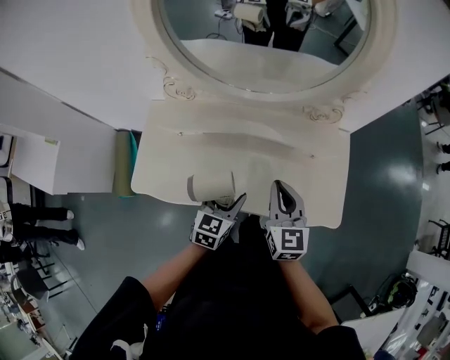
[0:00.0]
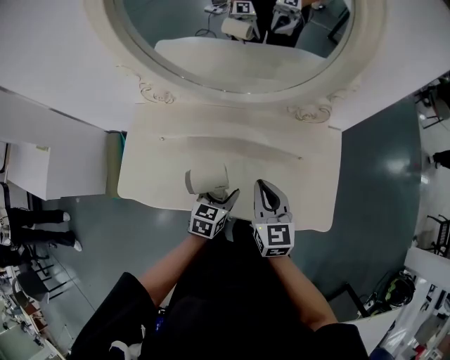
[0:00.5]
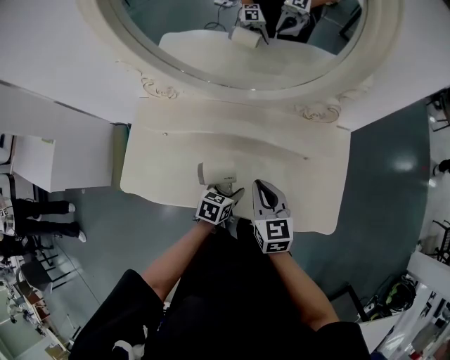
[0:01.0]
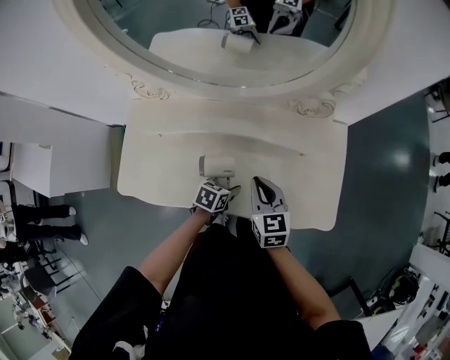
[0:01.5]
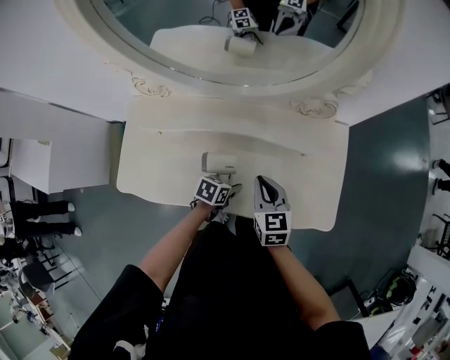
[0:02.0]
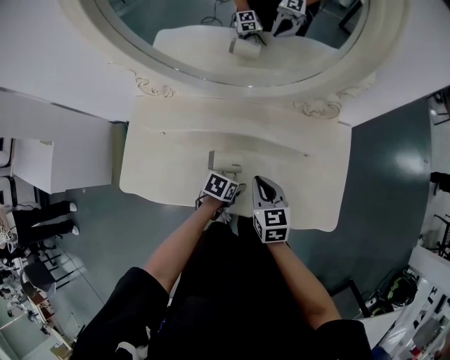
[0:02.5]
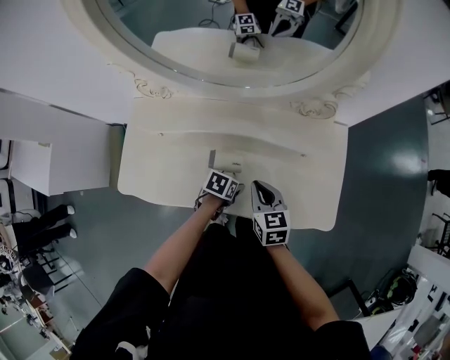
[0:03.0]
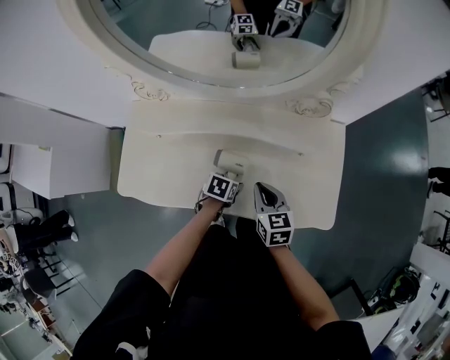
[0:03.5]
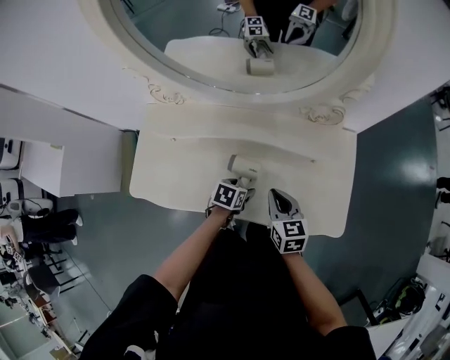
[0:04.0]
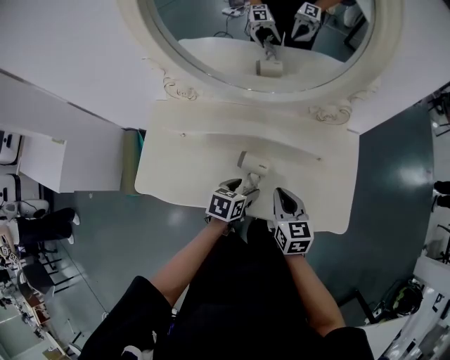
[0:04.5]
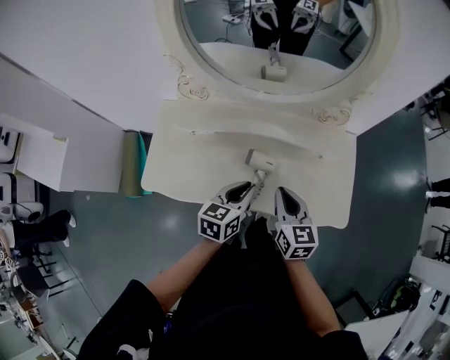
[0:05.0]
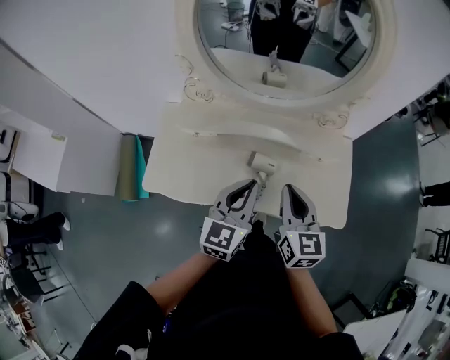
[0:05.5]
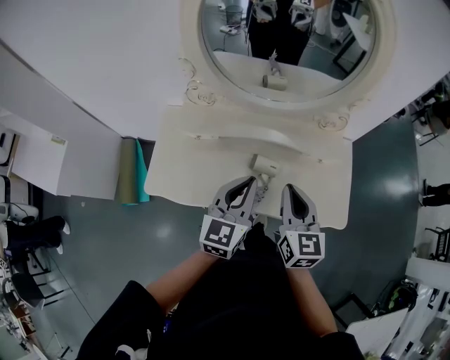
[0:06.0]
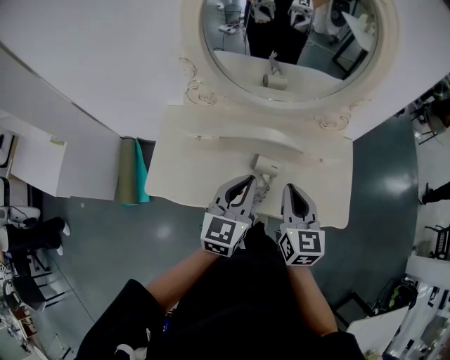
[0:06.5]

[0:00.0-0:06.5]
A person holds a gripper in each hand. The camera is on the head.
0:00.0 to 0:02.0: The left gripper shifts approximately 20 cm downward, and changes its angle by roughly 40 degrees. The right gripper goes roughly 10 cm downward.
0:02.0 to 0:04.5: The left gripper is displaced upward by roughly 10 cm.
0:04.5 to 0:06.5: The right gripper heads upward, covering about 15 cm. The left gripper shifts some 25 cm upward, tips its fingers upward by about 40 degrees, and closes.

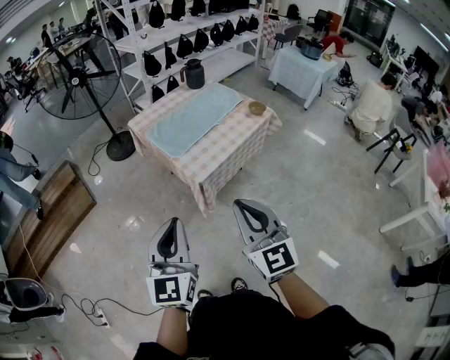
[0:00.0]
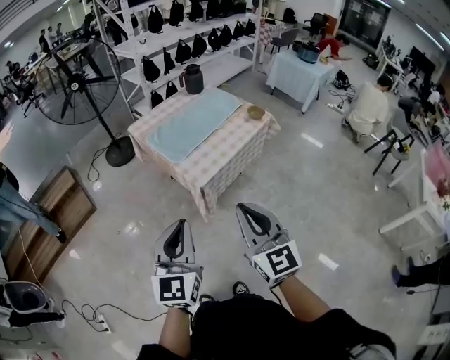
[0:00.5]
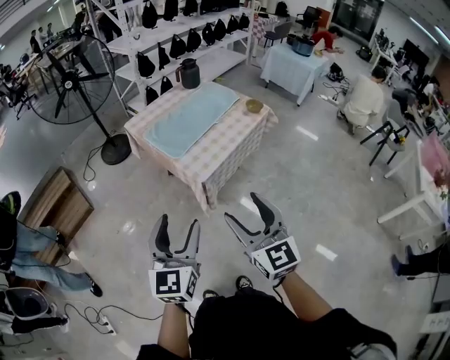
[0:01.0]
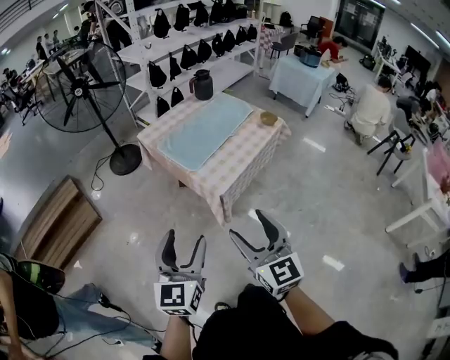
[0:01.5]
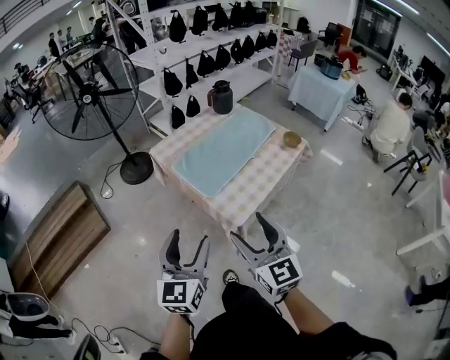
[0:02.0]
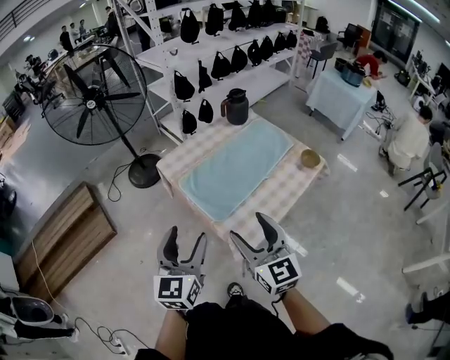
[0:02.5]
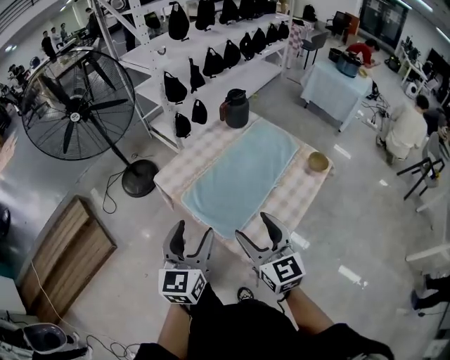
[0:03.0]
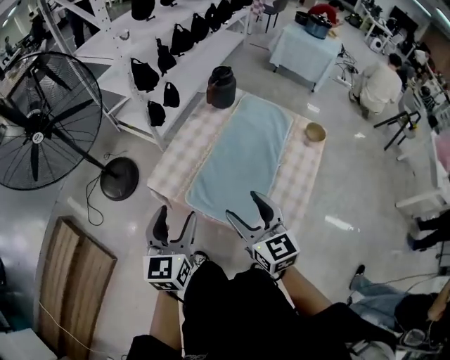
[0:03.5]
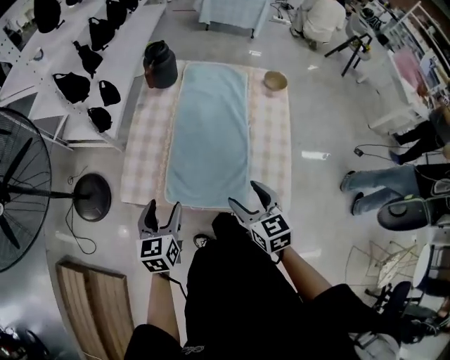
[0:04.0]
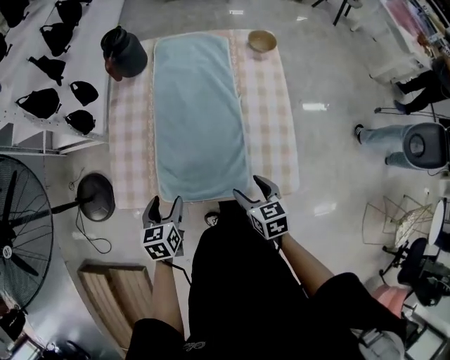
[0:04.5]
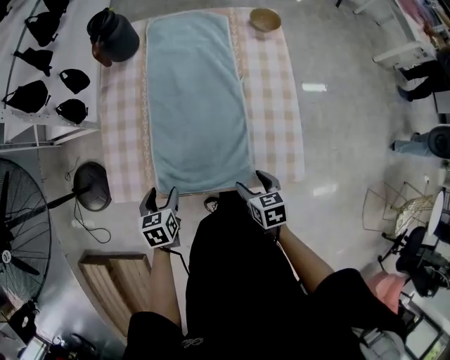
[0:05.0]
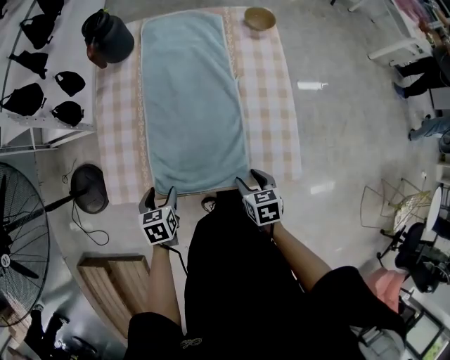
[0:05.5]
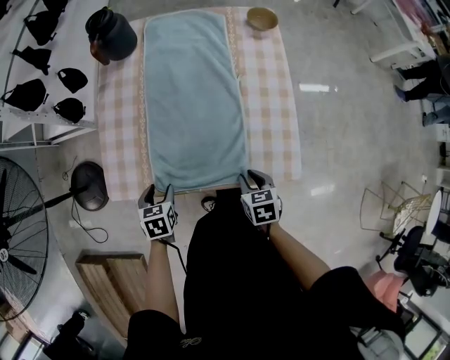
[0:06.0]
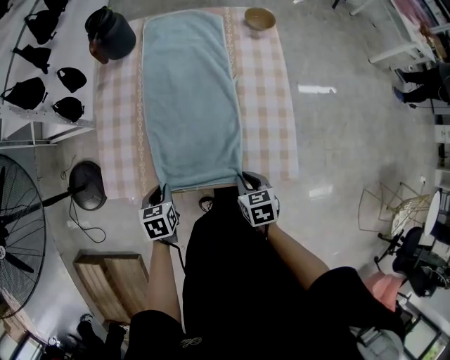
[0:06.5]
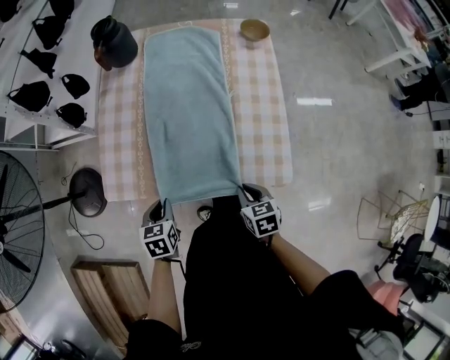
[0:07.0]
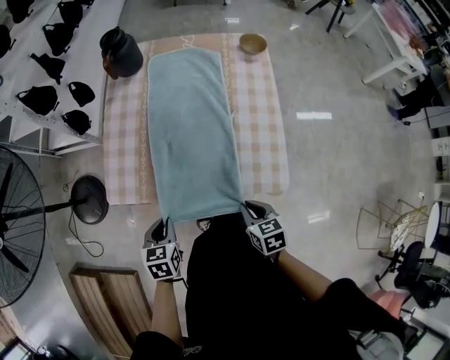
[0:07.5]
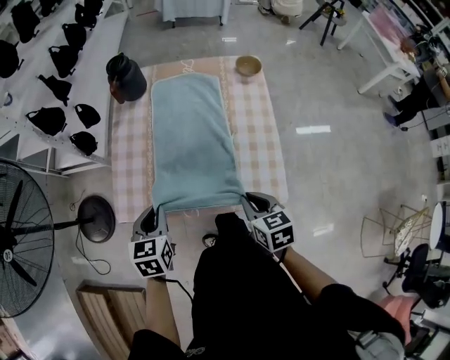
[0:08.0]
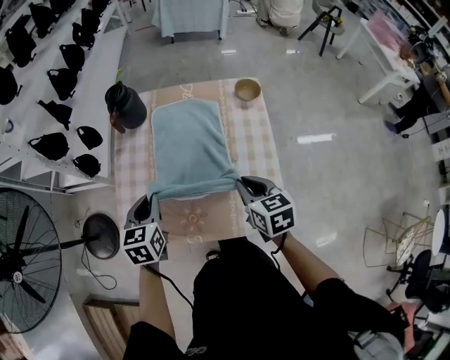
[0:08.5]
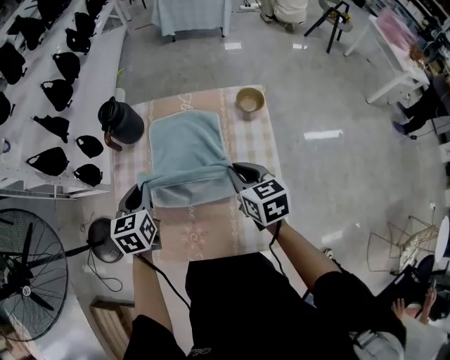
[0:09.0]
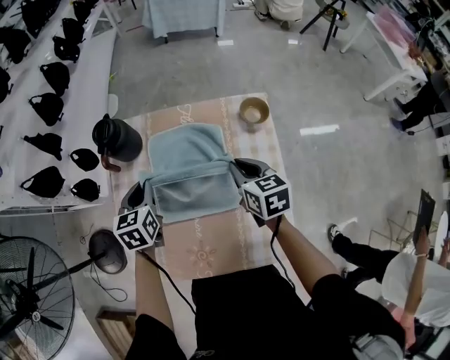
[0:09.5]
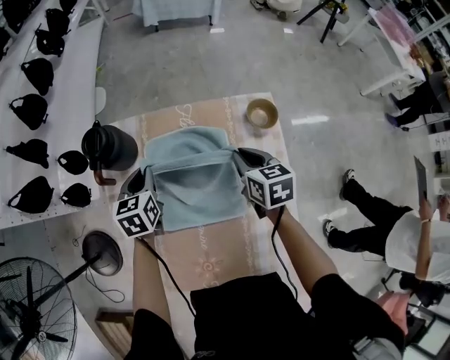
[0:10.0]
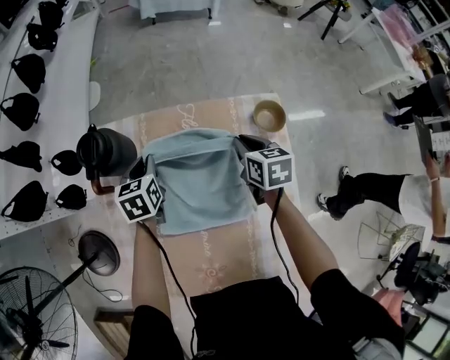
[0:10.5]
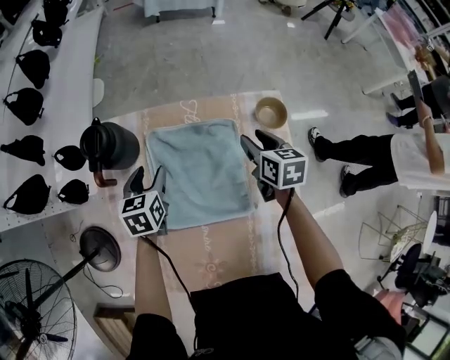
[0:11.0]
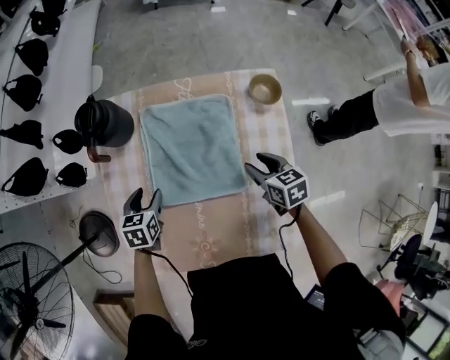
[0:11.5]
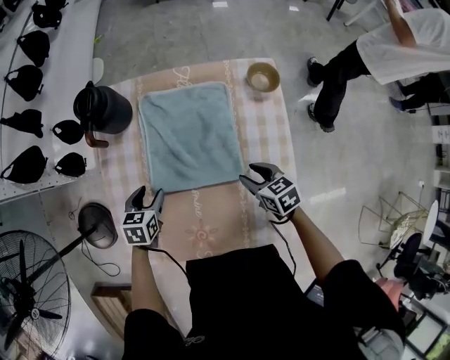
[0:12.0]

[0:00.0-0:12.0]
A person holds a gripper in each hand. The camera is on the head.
0:00.0 to 0:02.0: The grippers both shift forward and to the left by roughly 25 cm. The right gripper opens its fingers; the left gripper opens its fingers.
0:02.0 to 0:04.0: The left gripper ends up about 50 cm from where it was, and turns by approximately 40 degrees. The right gripper ends up approximately 40 cm from where it was, and turns by some 50 degrees.
0:04.0 to 0:06.0: The grippers both shift downward by about 20 cm. The left gripper tilts its fingers approximately 30 degrees downward, while the right gripper swivels roughly 30 degrees, and closes up.
0:06.0 to 0:08.0: Both grippers move upward, roughly 20 cm. The left gripper rotates roughly 20 degrees, and closes its fingers.
0:08.0 to 0:10.0: The pair of grippers is taken forward, roughly 40 cm.
0:10.0 to 0:12.0: The two grippers go about 20 cm backward and downward. The right gripper swivels about 20 degrees, and opens up. Meanwhile the left gripper opens its fingers.

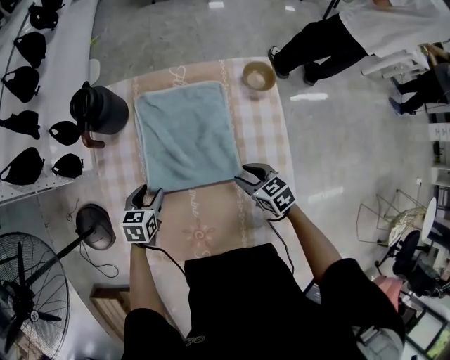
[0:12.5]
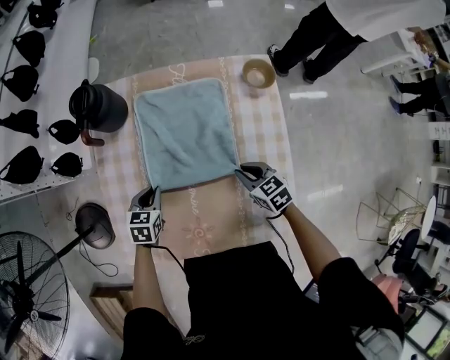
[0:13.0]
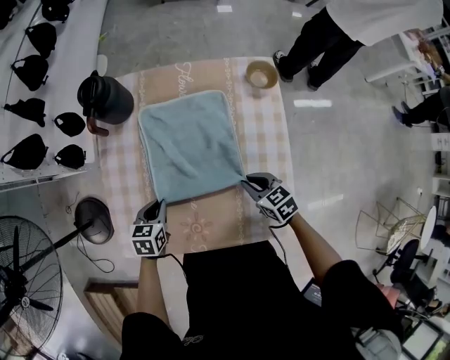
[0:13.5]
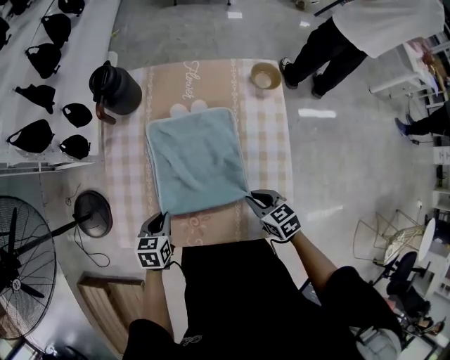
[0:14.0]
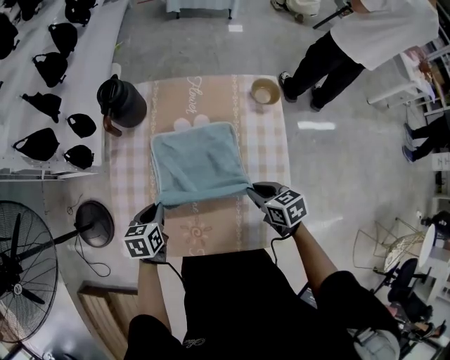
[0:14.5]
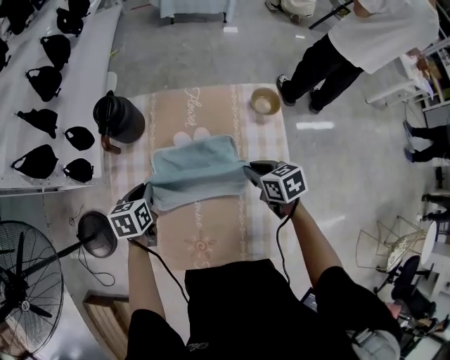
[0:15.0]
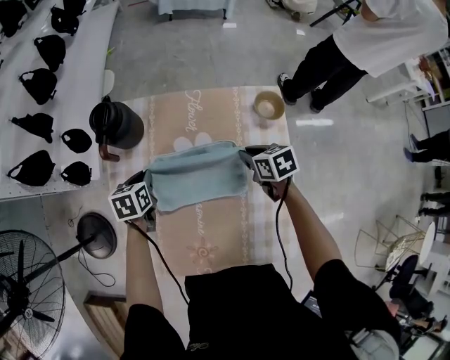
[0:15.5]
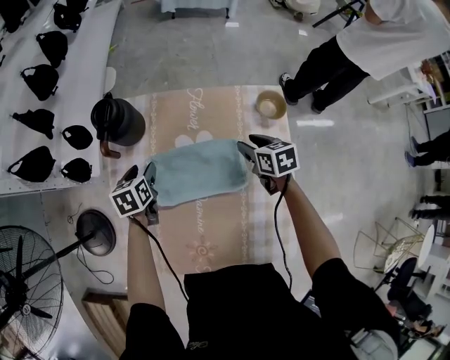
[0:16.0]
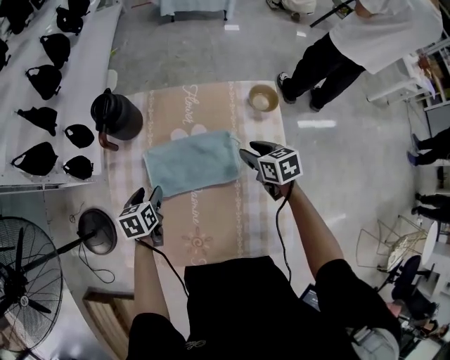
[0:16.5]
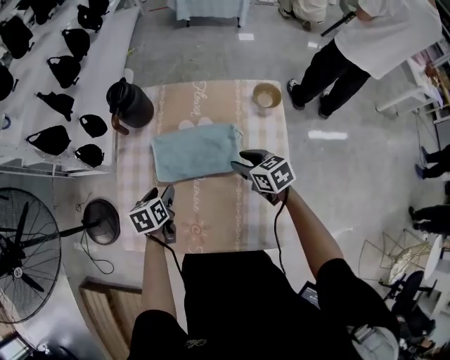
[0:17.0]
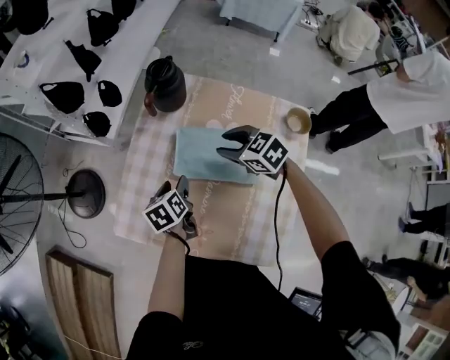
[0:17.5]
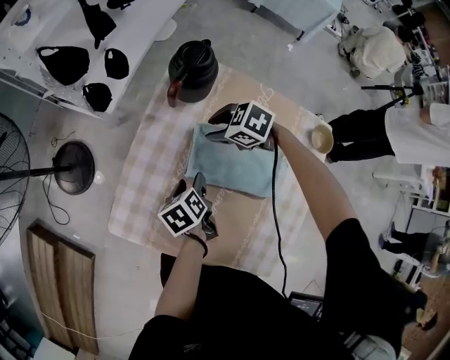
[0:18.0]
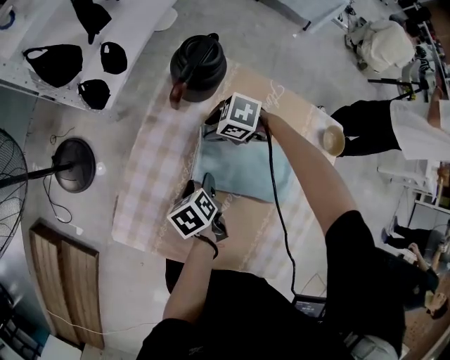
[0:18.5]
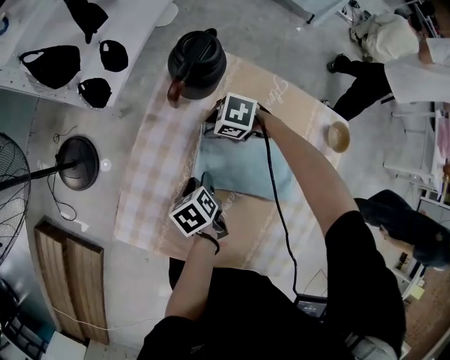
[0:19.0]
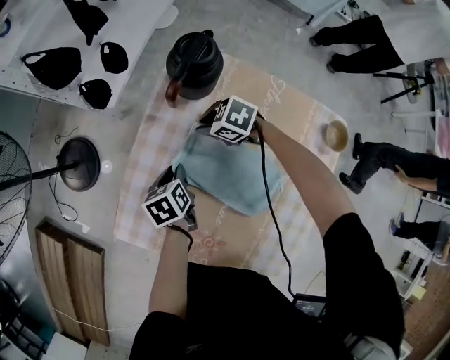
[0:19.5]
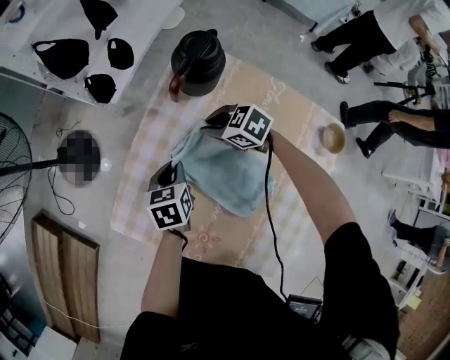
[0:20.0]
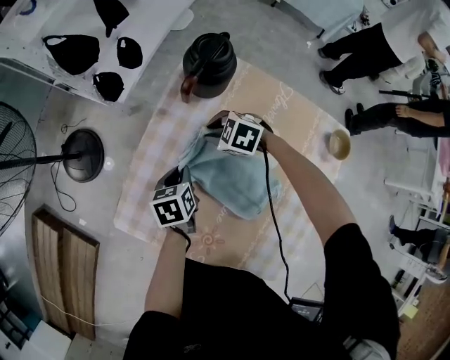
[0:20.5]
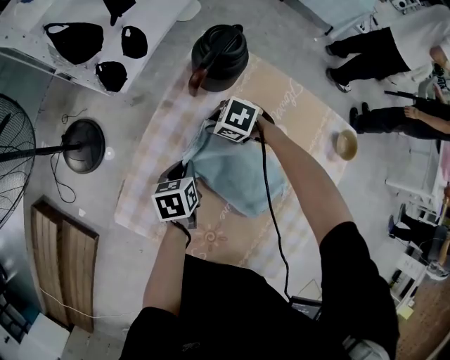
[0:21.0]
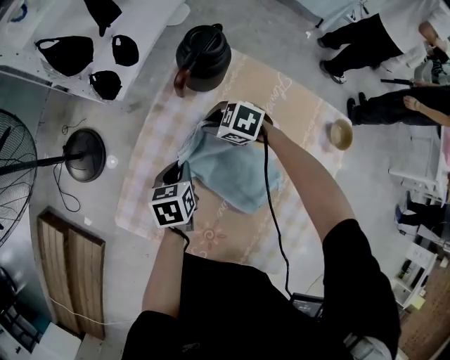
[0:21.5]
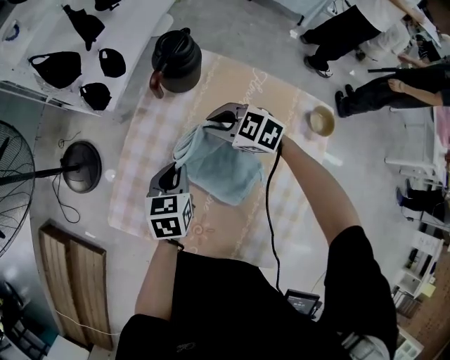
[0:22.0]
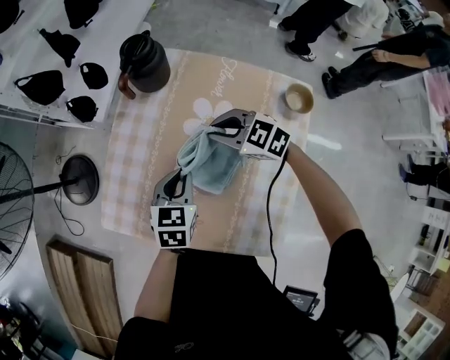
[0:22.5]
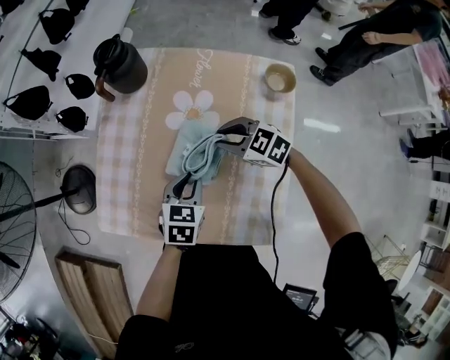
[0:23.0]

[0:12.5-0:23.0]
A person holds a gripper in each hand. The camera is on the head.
0:12.5 to 0:14.5: The left gripper moves backward and upward, about 10 cm, and closes its fingers. Meanwhile the right gripper goes approximately 5 cm upward, and closes.
0:14.5 to 0:16.5: The left gripper goes roughly 10 cm forward, and opens. Meanwhile the right gripper goes about 15 cm forward, and opens its fingers.
0:16.5 to 0:19.0: The right gripper ends up about 35 cm from where it was, and rotates roughly 80 degrees. Meanwhile the left gripper moves downward, some 5 cm, and rotates around the line of its fingers by about 40 degrees, counterclockwise from behind.
0:19.0 to 0:21.0: The left gripper shifts by some 5 cm, changes its angle by approximately 20 degrees, and closes.
0:21.0 to 0:23.0: The right gripper shifts by about 30 cm, and changes its angle by approximately 30 degrees. Meanwhile the left gripper ends up approximately 25 cm from where it was, and swivels approximately 40 degrees.
